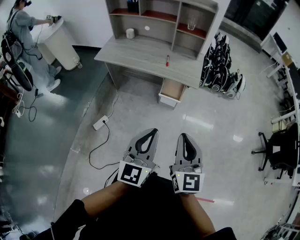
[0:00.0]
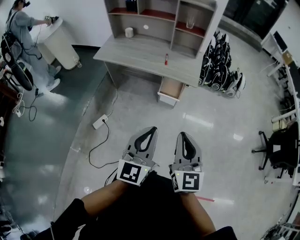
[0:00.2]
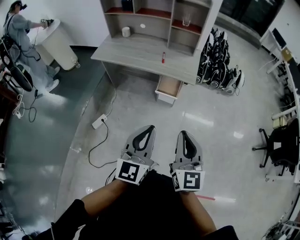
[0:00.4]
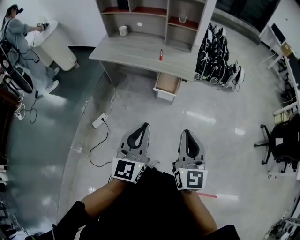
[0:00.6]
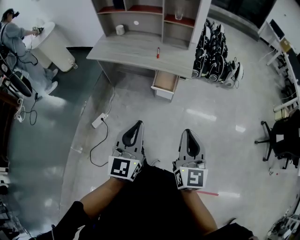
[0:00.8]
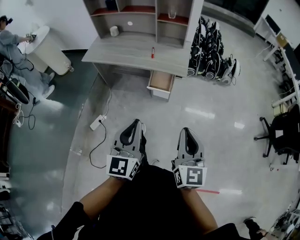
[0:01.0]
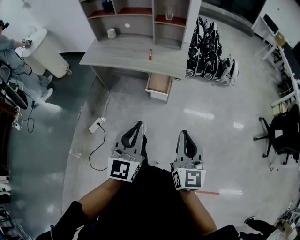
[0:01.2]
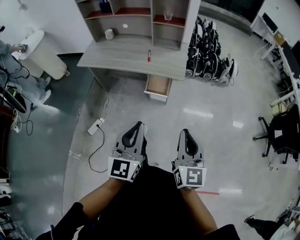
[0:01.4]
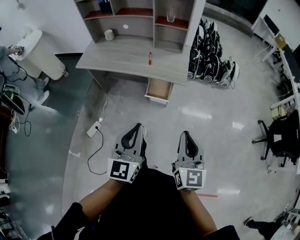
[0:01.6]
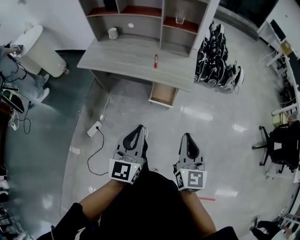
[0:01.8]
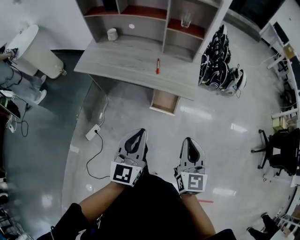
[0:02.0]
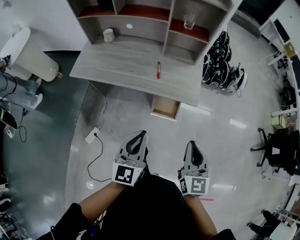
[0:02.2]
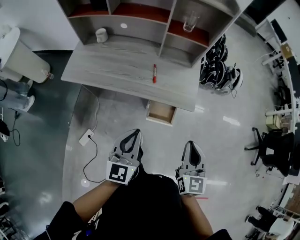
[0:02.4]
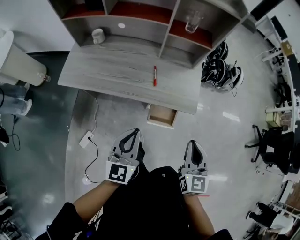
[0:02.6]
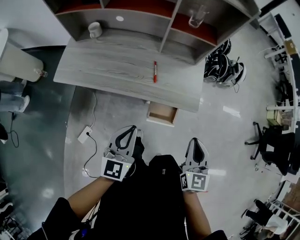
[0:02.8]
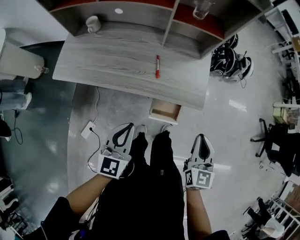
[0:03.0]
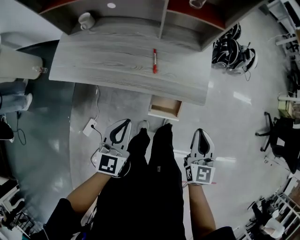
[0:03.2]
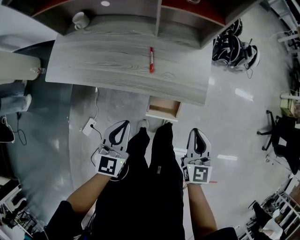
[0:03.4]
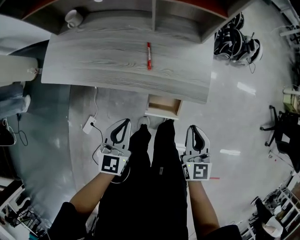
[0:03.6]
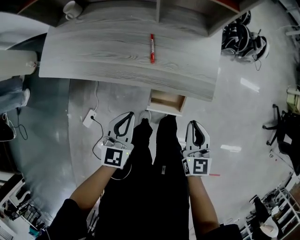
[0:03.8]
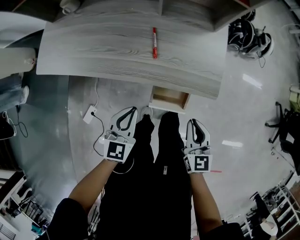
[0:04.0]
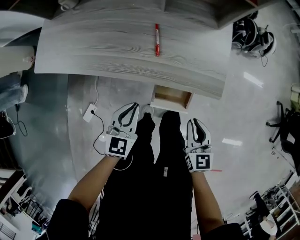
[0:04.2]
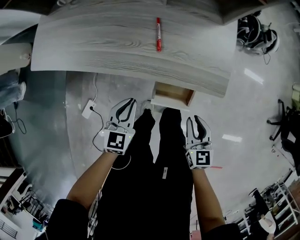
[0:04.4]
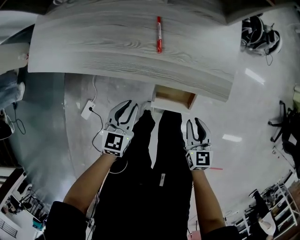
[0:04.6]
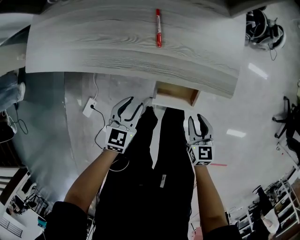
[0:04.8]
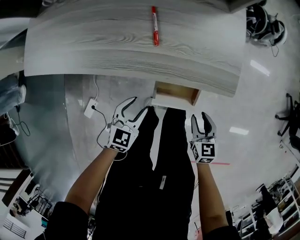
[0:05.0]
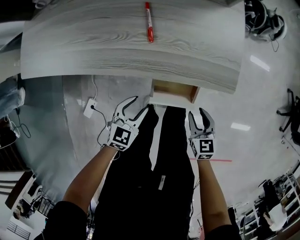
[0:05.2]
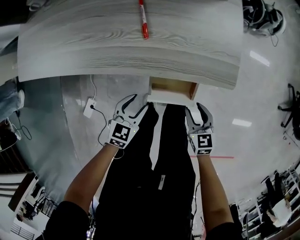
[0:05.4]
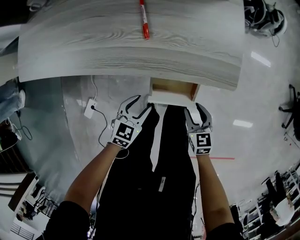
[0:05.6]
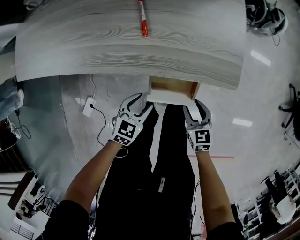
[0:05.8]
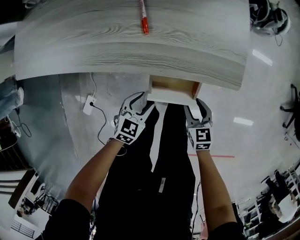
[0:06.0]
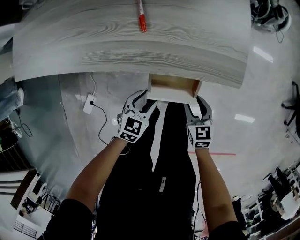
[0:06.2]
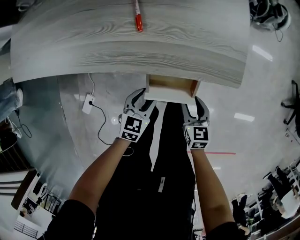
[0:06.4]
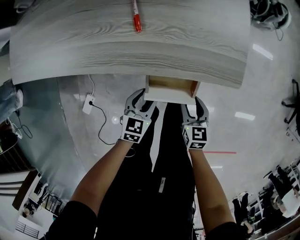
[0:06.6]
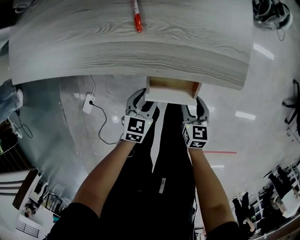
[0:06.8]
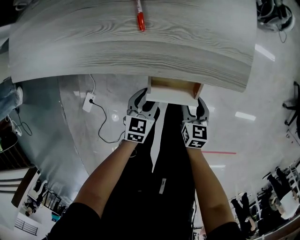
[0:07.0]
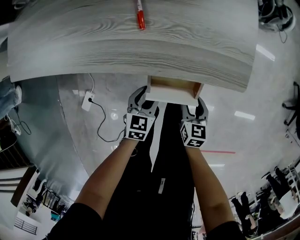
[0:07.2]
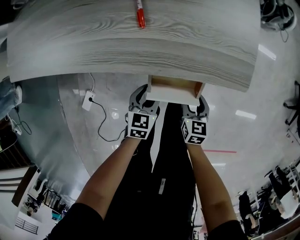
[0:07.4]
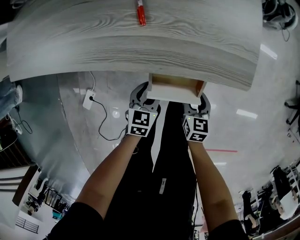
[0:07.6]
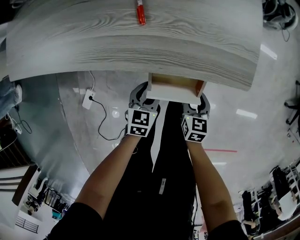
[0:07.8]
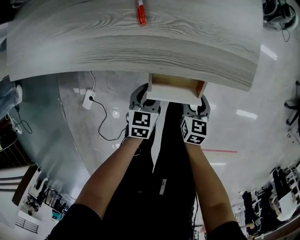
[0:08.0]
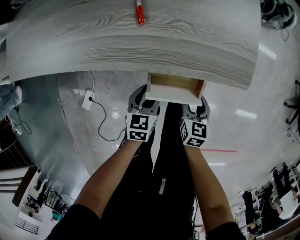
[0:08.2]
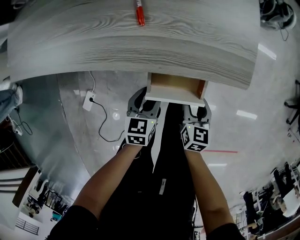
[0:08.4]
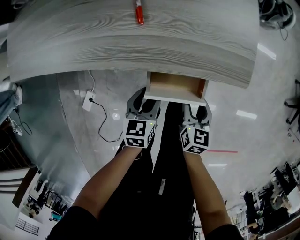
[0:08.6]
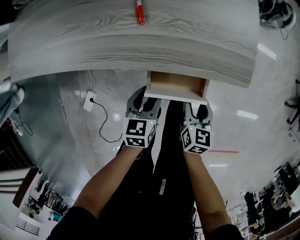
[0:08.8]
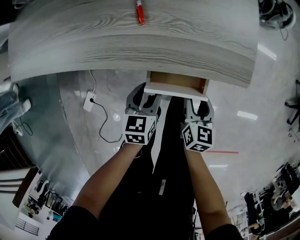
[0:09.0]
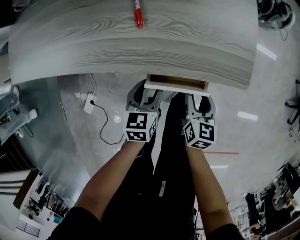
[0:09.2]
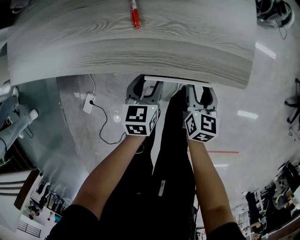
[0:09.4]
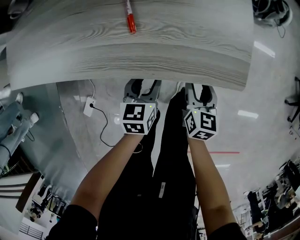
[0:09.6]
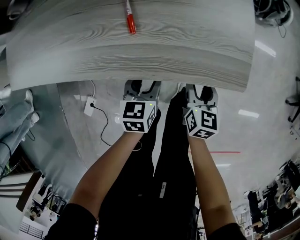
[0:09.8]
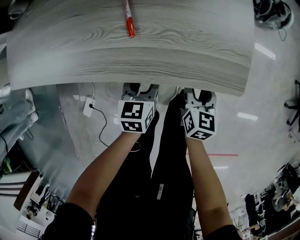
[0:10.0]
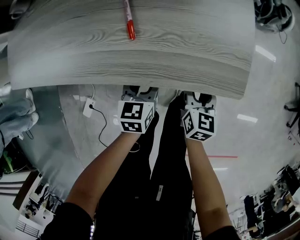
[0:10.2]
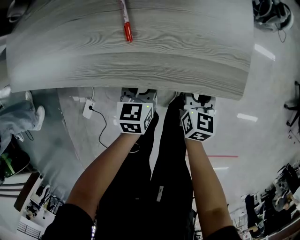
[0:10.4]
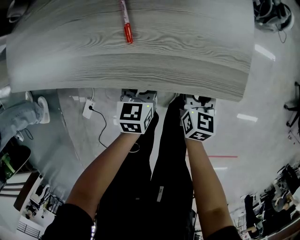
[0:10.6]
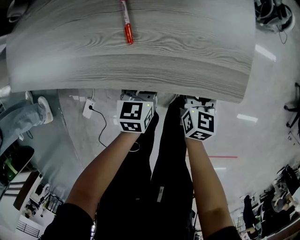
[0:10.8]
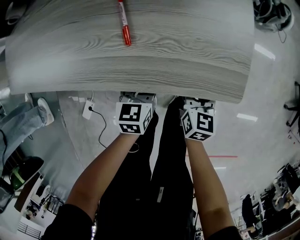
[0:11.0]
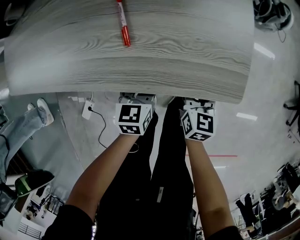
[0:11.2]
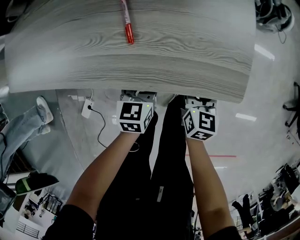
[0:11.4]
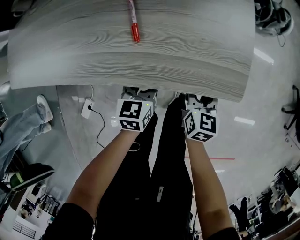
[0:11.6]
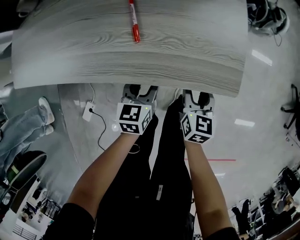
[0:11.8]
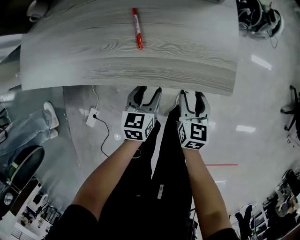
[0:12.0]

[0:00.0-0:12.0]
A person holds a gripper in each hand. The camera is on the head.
0:00.0 to 0:01.6: The right gripper moves to the right and forward, some 10 cm. Meanwhile the left gripper is displaced forward by roughly 10 cm.
0:01.6 to 0:03.0: The left gripper travels forward, to the left and downward by about 40 cm; the right gripper heads forward and downward, covering approximately 35 cm.
0:03.0 to 0:04.4: The grippers both shift downward by some 25 cm. The right gripper swivels about 20 degrees.
0:04.4 to 0:06.0: The left gripper travels downward and to the right by about 20 cm, turns by roughly 30 degrees, and opens up. Meanwhile the right gripper moves downward, about 15 cm, and opens.
0:06.0 to 0:07.6: The left gripper moves about 5 cm.
0:07.6 to 0:09.0: The grippers both shift upward by some 5 cm.
0:09.0 to 0:10.4: Both grippers move forward, roughly 10 cm.
0:10.4 to 0:12.0: The right gripper moves upward, approximately 5 cm.

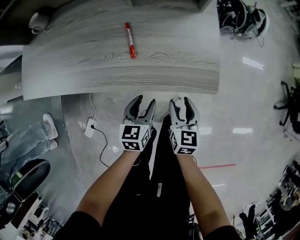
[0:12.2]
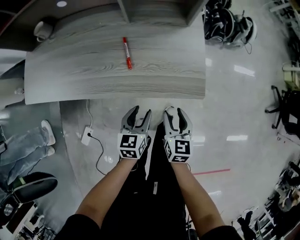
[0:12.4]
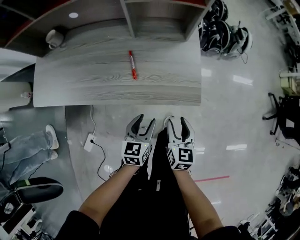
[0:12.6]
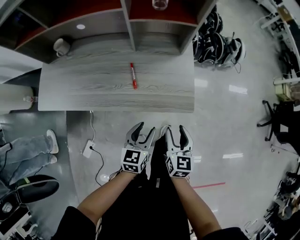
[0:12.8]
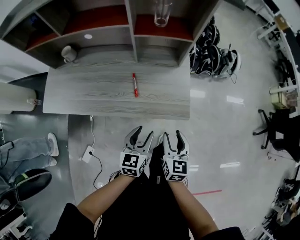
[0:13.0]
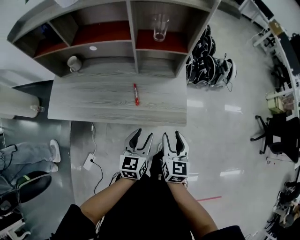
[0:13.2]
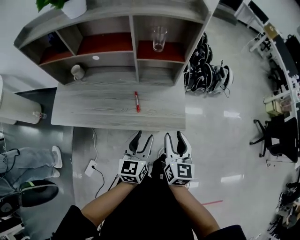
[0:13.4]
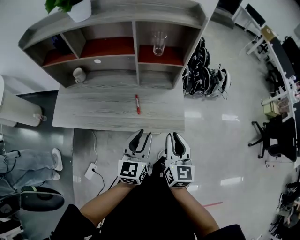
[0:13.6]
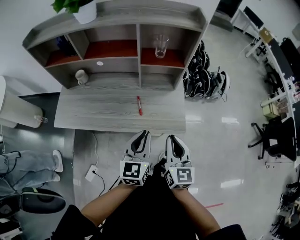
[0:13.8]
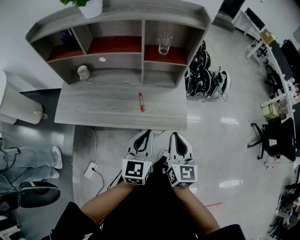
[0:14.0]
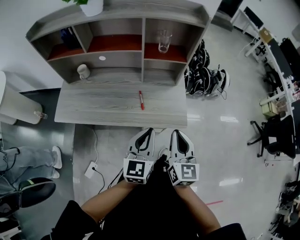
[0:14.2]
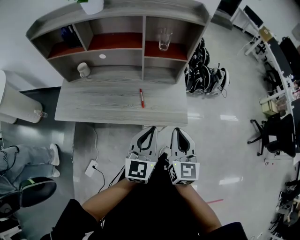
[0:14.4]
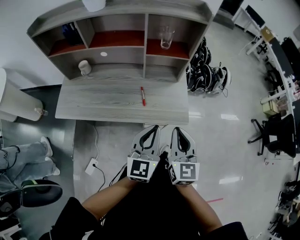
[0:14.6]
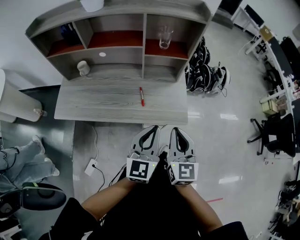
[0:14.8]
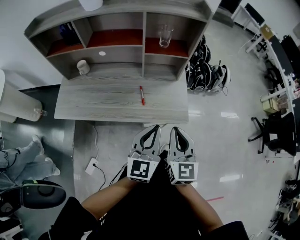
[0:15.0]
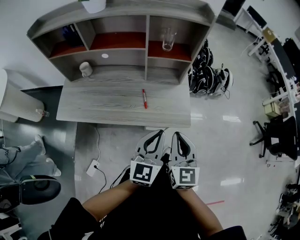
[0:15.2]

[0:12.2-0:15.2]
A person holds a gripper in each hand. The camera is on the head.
0:12.2 to 0:13.8: Both grippers move upward, approximately 40 cm. The left gripper swivels about 30 degrees, and closes its fingers. Meanwhile the right gripper swivels roughly 20 degrees, and closes its fingers.
0:13.8 to 0:15.2: The grippers move only a little.

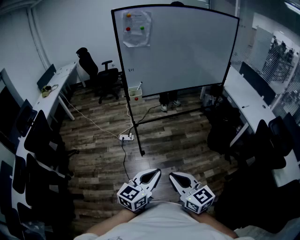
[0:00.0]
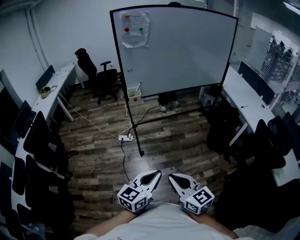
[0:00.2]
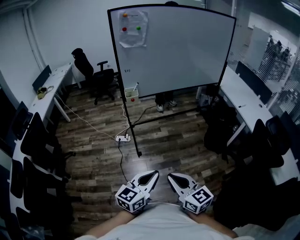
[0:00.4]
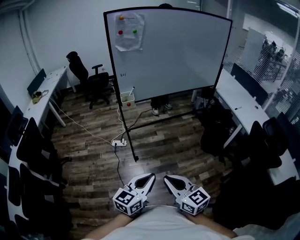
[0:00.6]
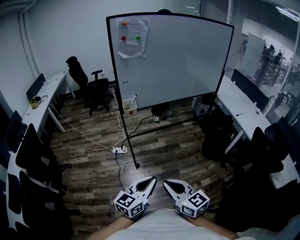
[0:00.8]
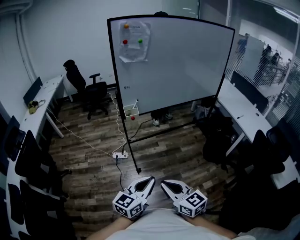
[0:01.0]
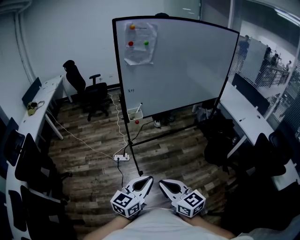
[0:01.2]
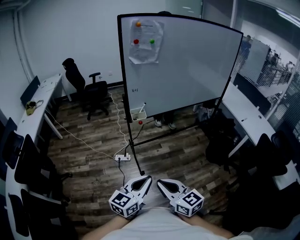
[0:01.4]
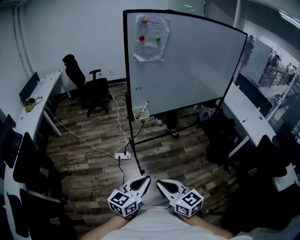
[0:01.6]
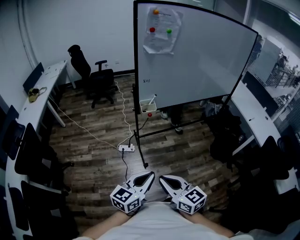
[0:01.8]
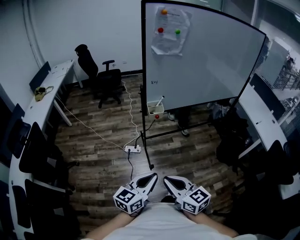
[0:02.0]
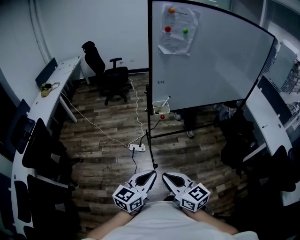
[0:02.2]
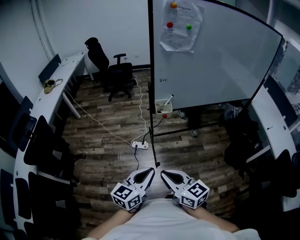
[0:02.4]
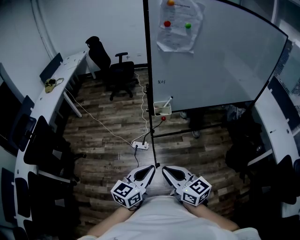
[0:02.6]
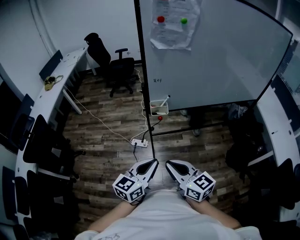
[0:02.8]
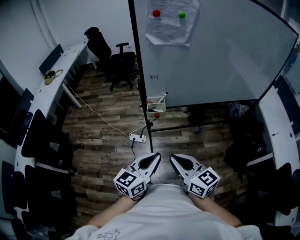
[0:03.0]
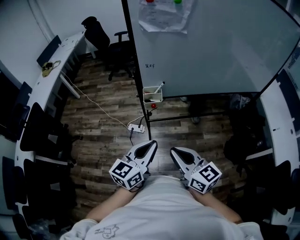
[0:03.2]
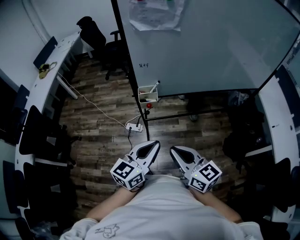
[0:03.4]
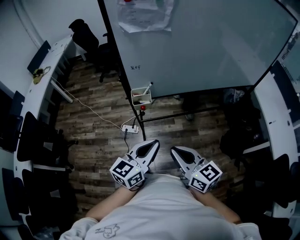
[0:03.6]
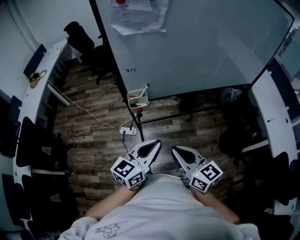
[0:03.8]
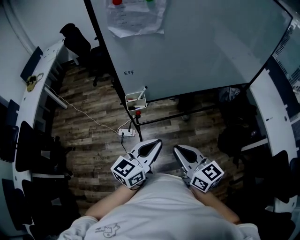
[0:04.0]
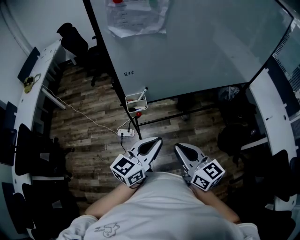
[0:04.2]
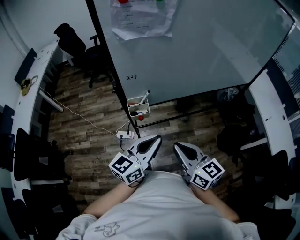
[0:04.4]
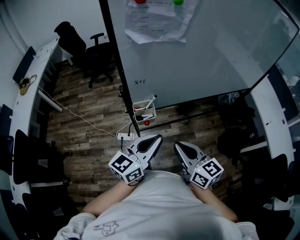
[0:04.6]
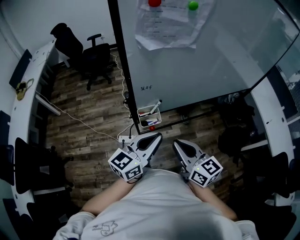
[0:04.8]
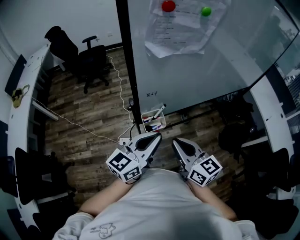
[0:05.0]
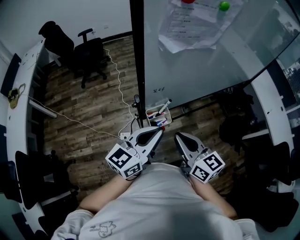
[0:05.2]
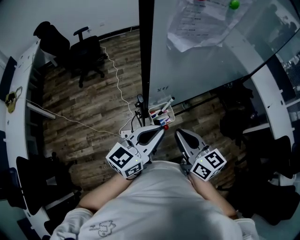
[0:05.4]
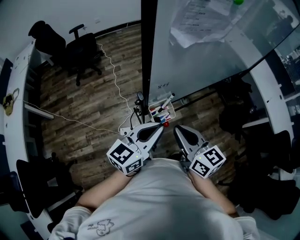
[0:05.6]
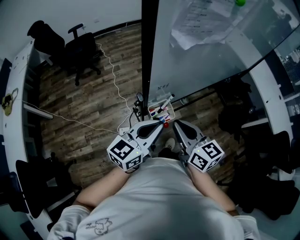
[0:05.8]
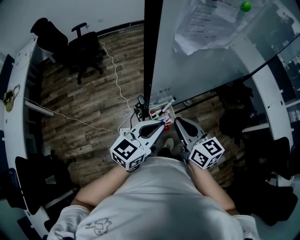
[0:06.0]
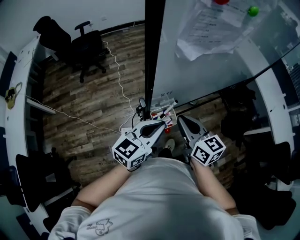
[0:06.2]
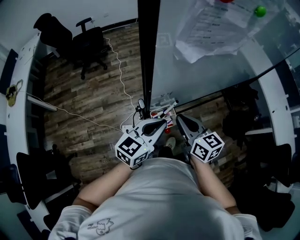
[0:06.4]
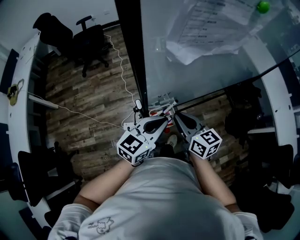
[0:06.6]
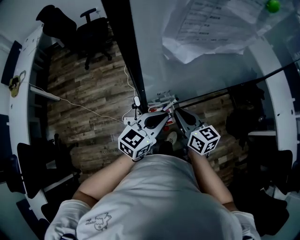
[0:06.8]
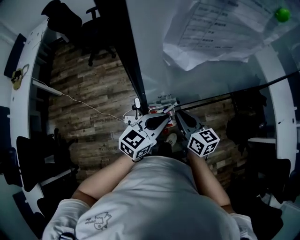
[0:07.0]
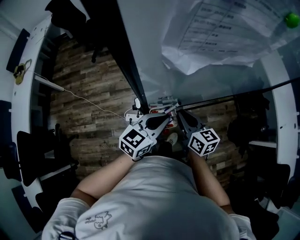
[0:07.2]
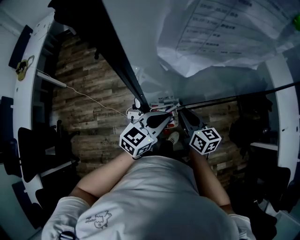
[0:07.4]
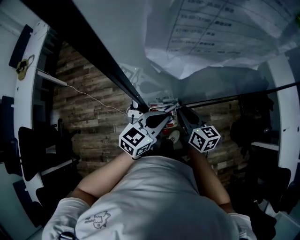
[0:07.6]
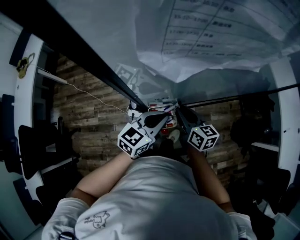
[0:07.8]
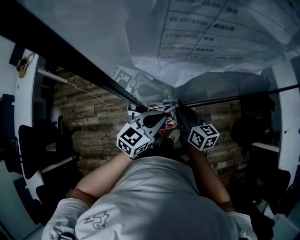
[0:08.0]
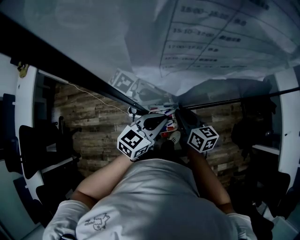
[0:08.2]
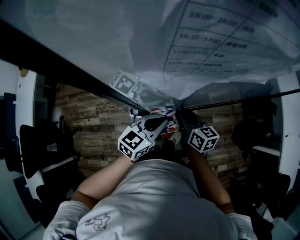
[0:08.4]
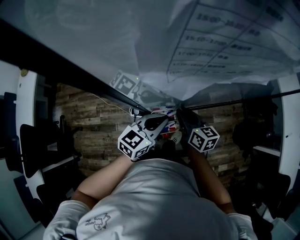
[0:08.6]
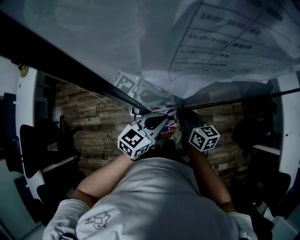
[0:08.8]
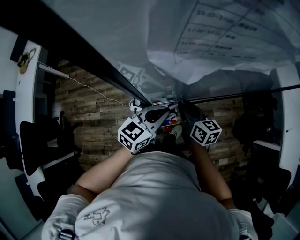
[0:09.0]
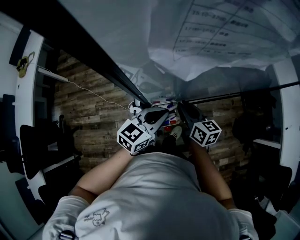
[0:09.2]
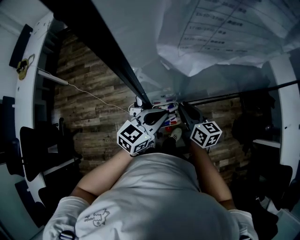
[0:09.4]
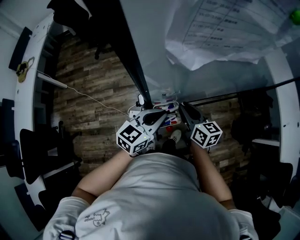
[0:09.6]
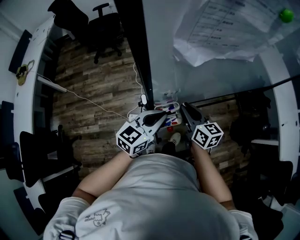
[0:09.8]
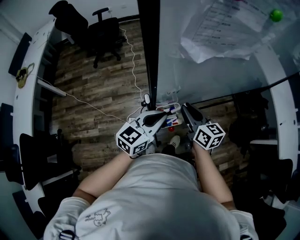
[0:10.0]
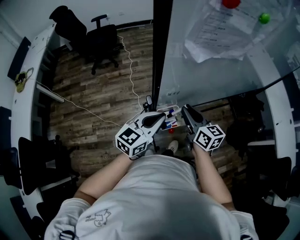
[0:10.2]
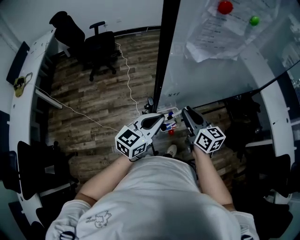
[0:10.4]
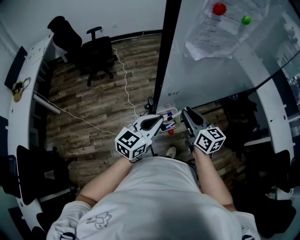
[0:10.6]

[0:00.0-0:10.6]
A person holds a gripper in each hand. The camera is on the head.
0:00.0 to 0:01.6: Both grippers travel together to the left and forward, approximately 30 cm.
0:01.6 to 0:03.0: The grippers both shift forward and to the right by some 20 cm.
0:03.0 to 0:04.6: Both grippers travel together forward, some 15 cm.
0:04.6 to 0:06.0: The grippers both shift to the left and forward by about 20 cm.
0:06.0 to 0:07.6: Both grippers travel together downward and forward, approximately 15 cm.
0:07.6 to 0:09.0: The grippers stay close to where they were, moving slightly.
0:09.0 to 0:10.6: The left gripper moves upward, backward and to the left, some 15 cm. Meanwhile the right gripper shifts roughly 15 cm upward and backward.
